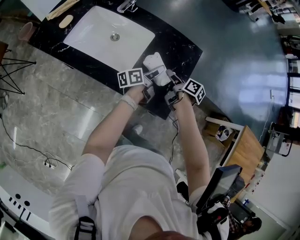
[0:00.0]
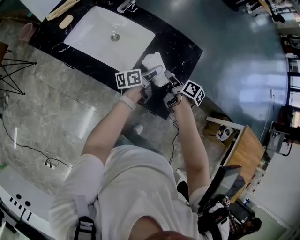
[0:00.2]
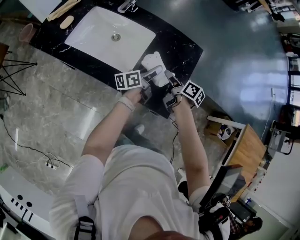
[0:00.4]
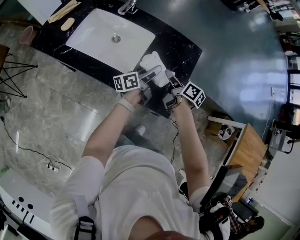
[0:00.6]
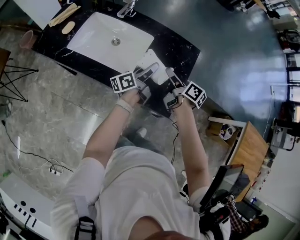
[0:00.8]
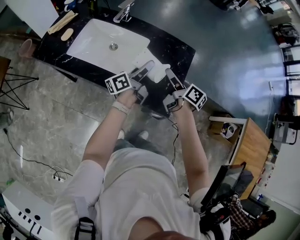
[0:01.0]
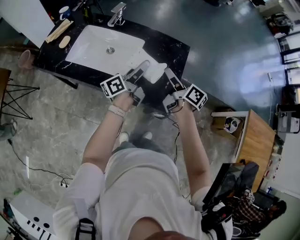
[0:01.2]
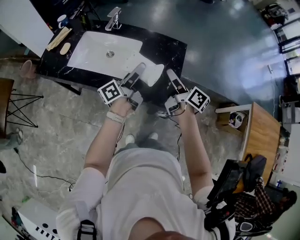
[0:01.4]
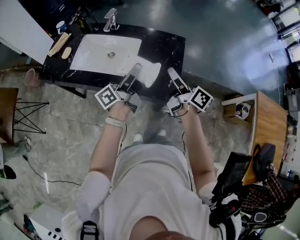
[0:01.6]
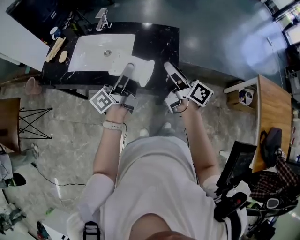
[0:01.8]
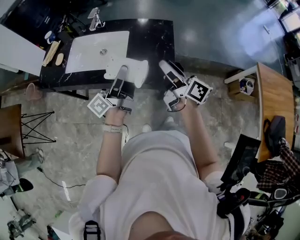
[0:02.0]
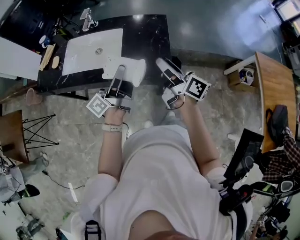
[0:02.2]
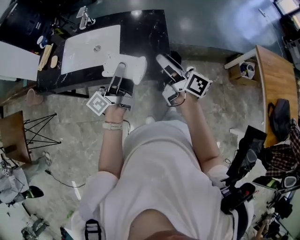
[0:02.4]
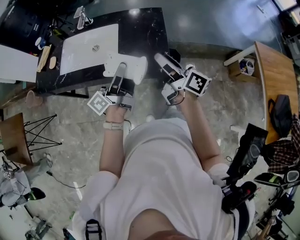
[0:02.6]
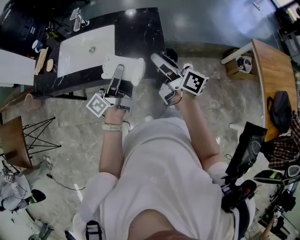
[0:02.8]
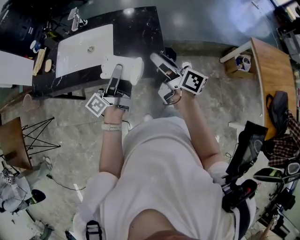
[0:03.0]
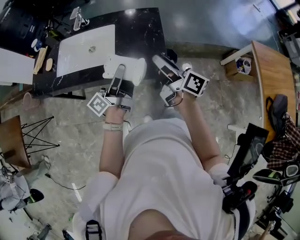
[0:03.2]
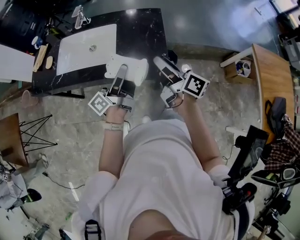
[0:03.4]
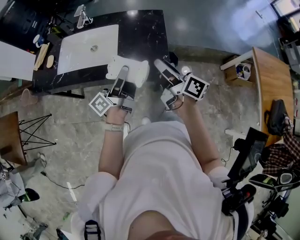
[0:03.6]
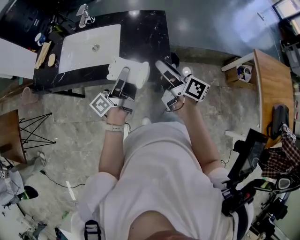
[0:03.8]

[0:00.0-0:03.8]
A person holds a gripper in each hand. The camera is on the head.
0:00.0 to 0:01.2: The right gripper travels upward by roughly 15 cm, and turns by some 30 degrees. The left gripper moves upward and to the left, roughly 15 cm.
0:01.2 to 0:02.6: Both grippers travel together backward, roughly 15 cm.
0:02.6 to 0:03.8: The grippers move only a little.

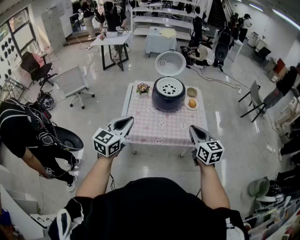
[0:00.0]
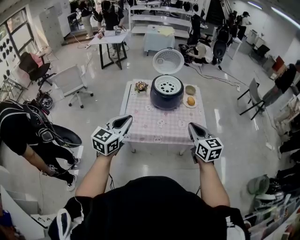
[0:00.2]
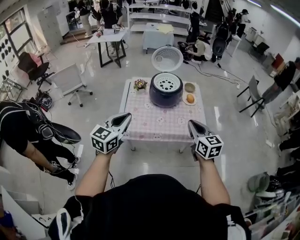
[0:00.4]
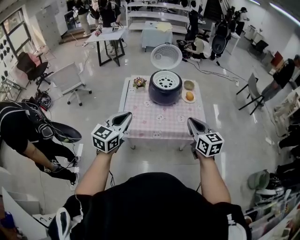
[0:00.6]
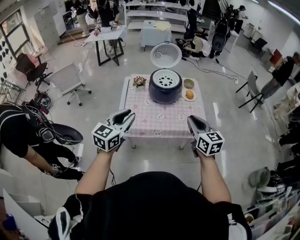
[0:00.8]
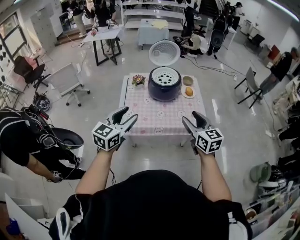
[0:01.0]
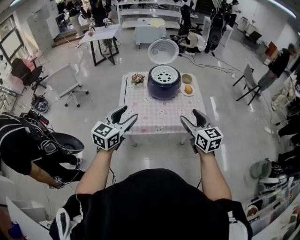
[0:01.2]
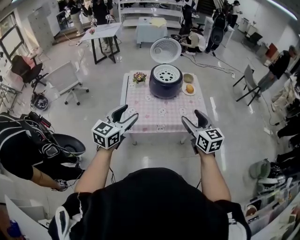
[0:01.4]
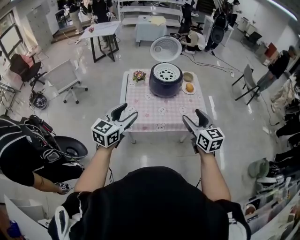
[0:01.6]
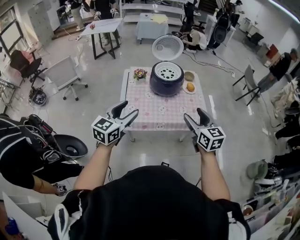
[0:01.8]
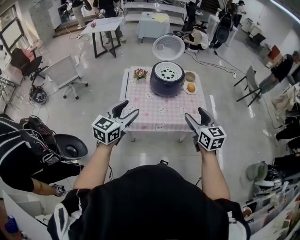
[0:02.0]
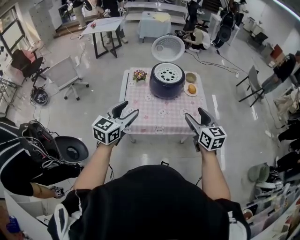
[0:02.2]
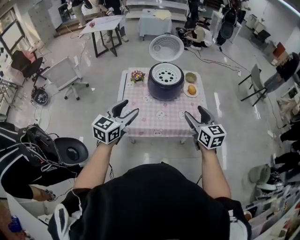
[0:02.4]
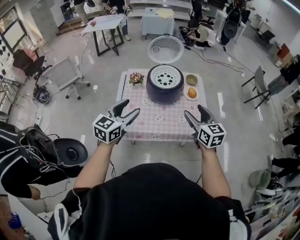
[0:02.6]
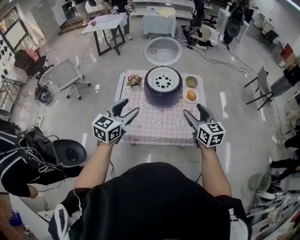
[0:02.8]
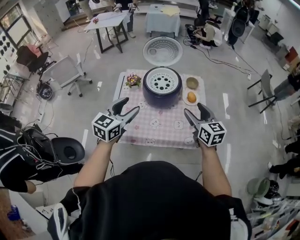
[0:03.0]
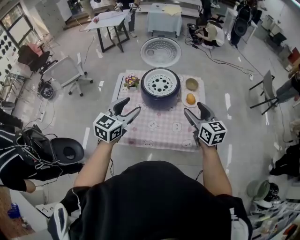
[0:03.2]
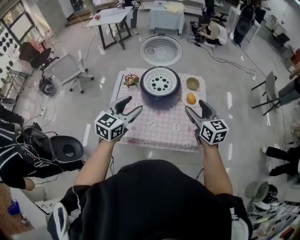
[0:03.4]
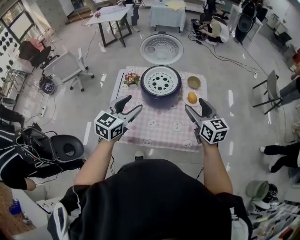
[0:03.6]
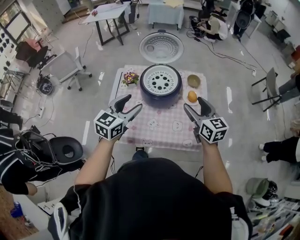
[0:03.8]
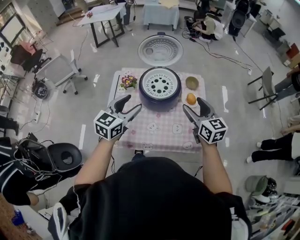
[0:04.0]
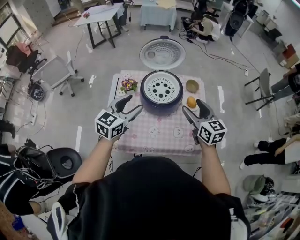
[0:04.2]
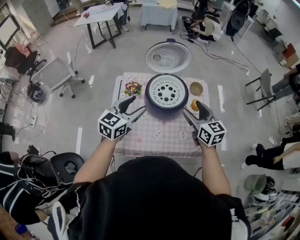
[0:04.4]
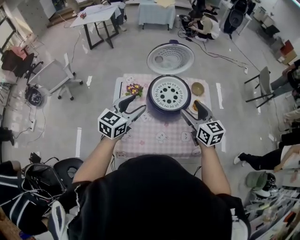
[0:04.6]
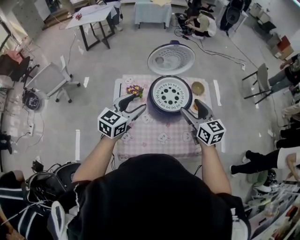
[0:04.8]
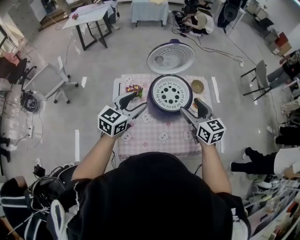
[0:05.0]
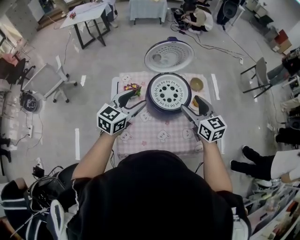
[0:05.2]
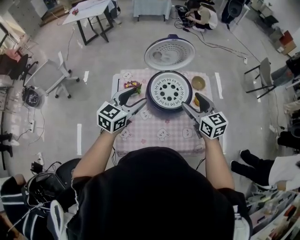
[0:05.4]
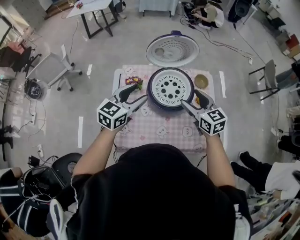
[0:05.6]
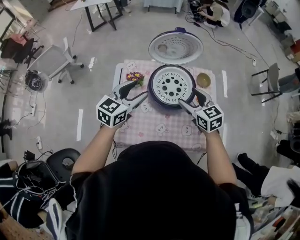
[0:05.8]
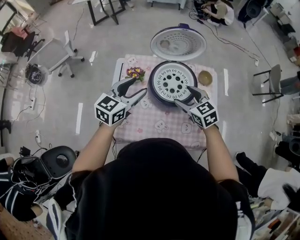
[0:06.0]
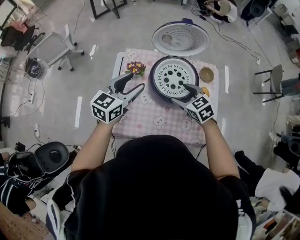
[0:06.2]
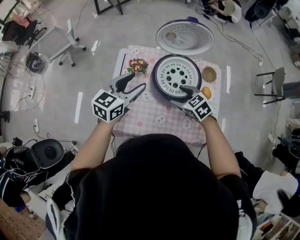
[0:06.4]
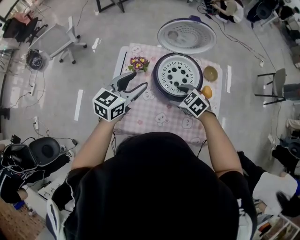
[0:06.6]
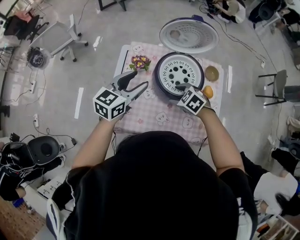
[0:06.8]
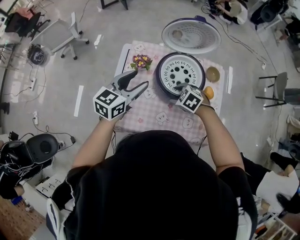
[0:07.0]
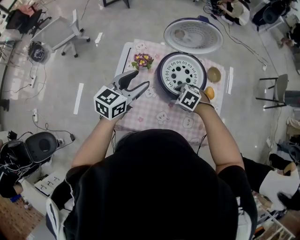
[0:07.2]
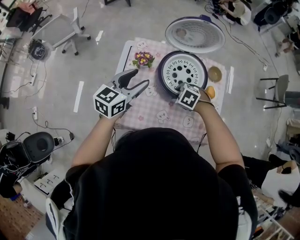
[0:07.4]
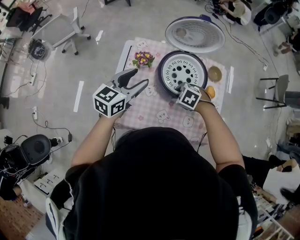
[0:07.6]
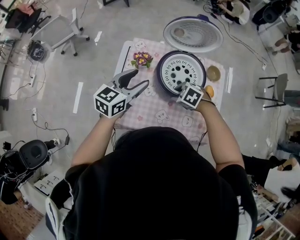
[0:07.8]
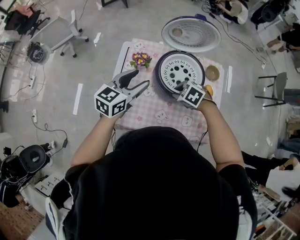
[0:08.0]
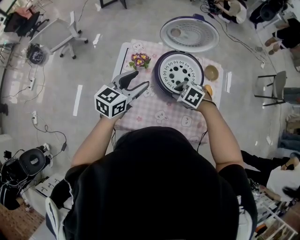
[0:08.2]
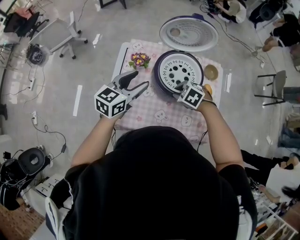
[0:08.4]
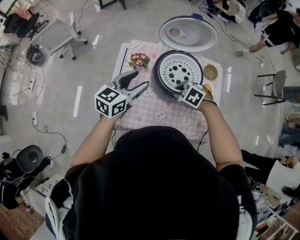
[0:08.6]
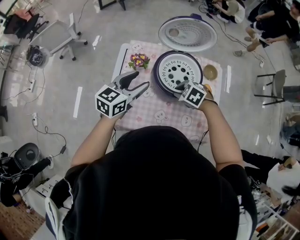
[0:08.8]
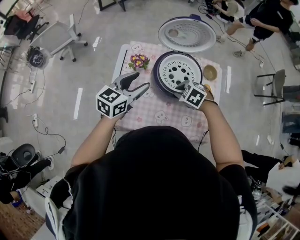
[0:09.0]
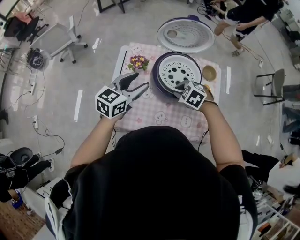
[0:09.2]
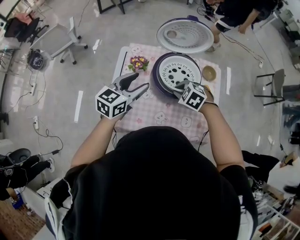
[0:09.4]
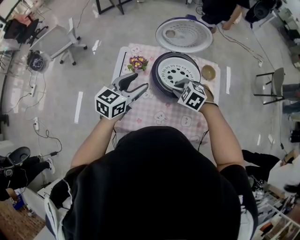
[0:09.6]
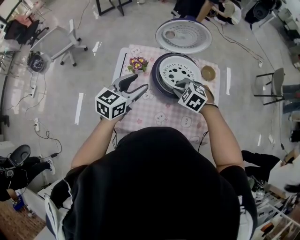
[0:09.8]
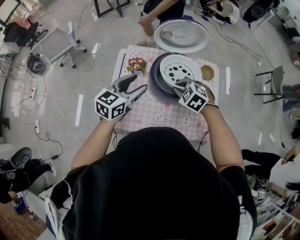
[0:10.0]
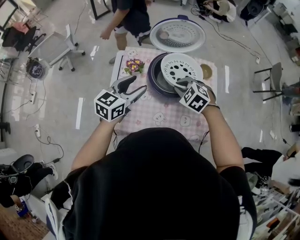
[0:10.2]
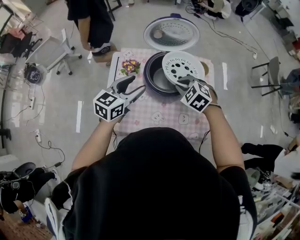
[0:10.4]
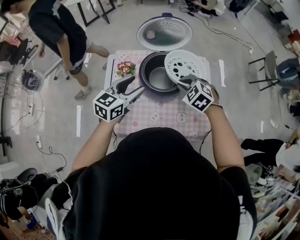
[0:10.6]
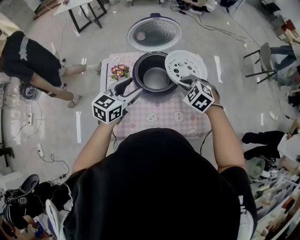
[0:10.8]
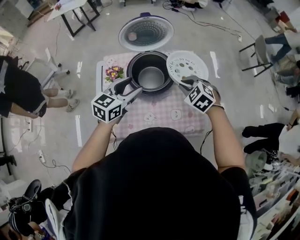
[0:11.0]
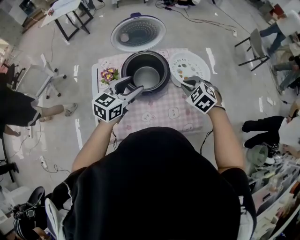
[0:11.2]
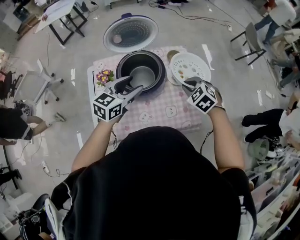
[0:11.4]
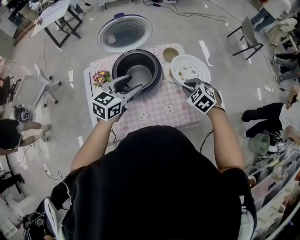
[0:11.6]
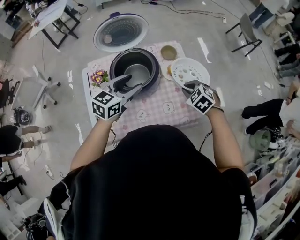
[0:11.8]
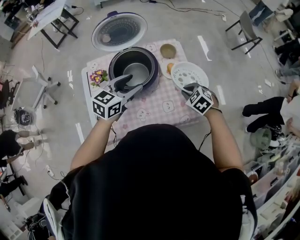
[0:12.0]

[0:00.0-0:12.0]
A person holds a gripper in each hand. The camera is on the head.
0:00.0 to 0:01.6: The left gripper opens up; the right gripper opens its fingers.
0:01.6 to 0:03.0: The grippers both shift forward and to the right by approximately 25 cm.
0:03.0 to 0:04.4: The left gripper goes about 15 cm forward, while the right gripper moves forward and to the left, about 15 cm.
0:04.4 to 0:06.0: The left gripper heads forward, covering approximately 5 cm; the right gripper heads downward, to the left and forward, covering some 15 cm, and turns by about 30 degrees.
0:06.0 to 0:07.6: The right gripper travels downward by roughly 15 cm, points its fingers about 40 degrees further downward, and closes.
0:07.6 to 0:09.0: The grippers make only small movements.
0:09.0 to 0:10.4: The right gripper travels upward by roughly 10 cm, and turns by about 20 degrees.
0:10.4 to 0:12.0: Both grippers move to the right, approximately 20 cm. The right gripper changes its angle by about 30 degrees. The left gripper rotates some 20 degrees.

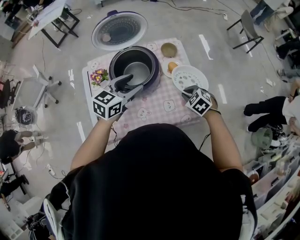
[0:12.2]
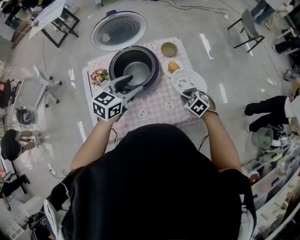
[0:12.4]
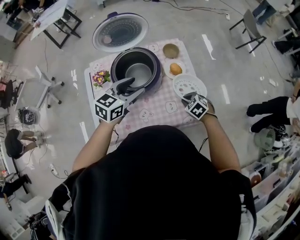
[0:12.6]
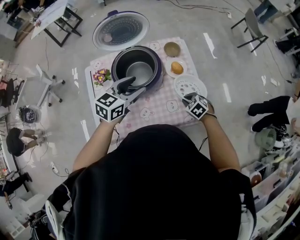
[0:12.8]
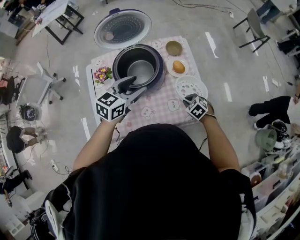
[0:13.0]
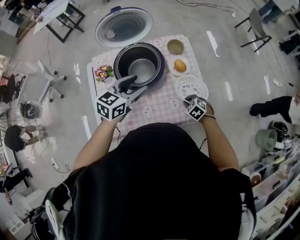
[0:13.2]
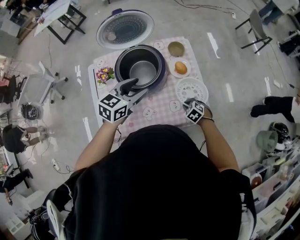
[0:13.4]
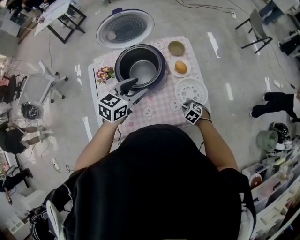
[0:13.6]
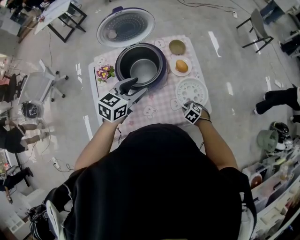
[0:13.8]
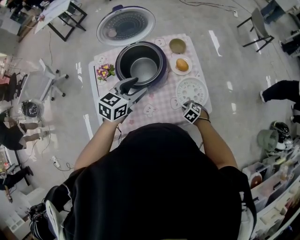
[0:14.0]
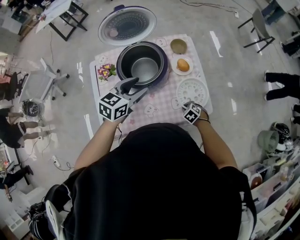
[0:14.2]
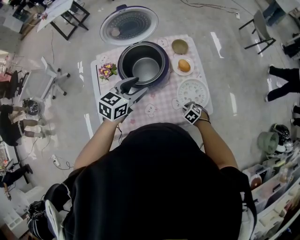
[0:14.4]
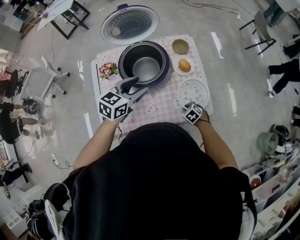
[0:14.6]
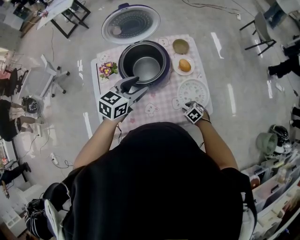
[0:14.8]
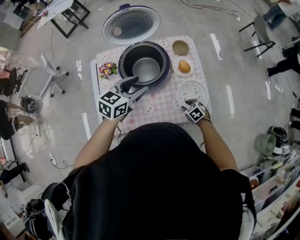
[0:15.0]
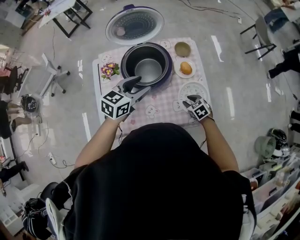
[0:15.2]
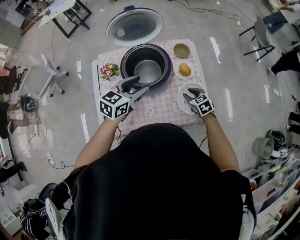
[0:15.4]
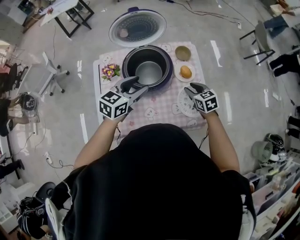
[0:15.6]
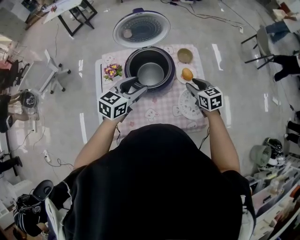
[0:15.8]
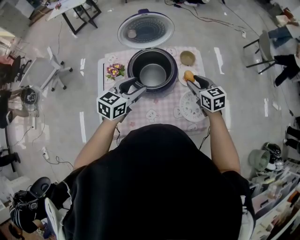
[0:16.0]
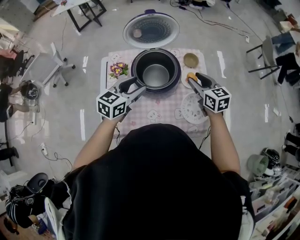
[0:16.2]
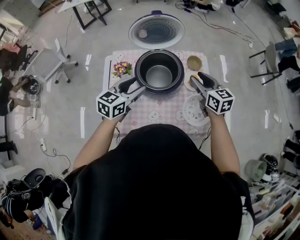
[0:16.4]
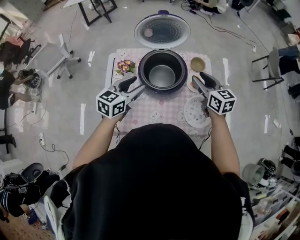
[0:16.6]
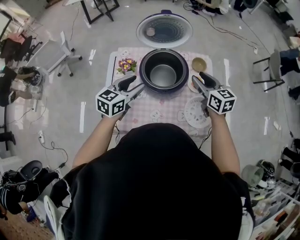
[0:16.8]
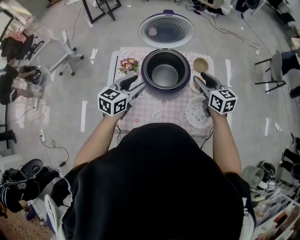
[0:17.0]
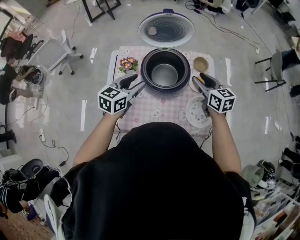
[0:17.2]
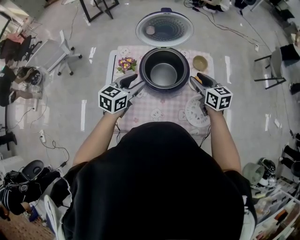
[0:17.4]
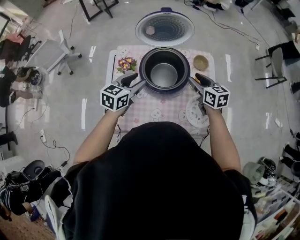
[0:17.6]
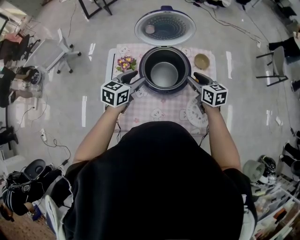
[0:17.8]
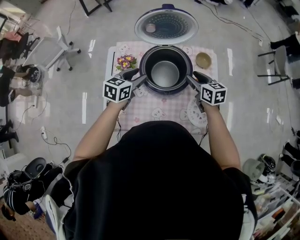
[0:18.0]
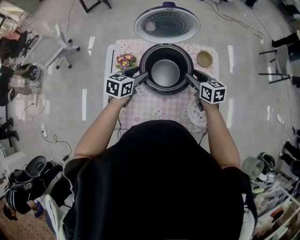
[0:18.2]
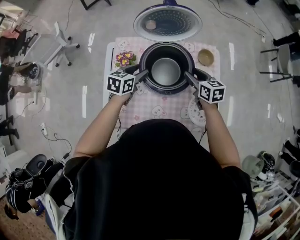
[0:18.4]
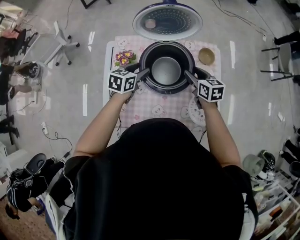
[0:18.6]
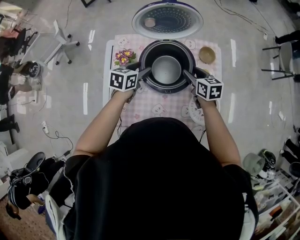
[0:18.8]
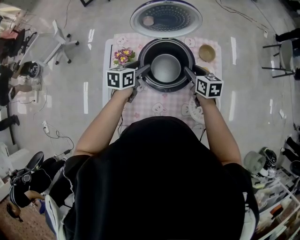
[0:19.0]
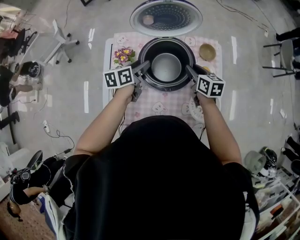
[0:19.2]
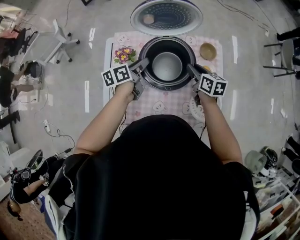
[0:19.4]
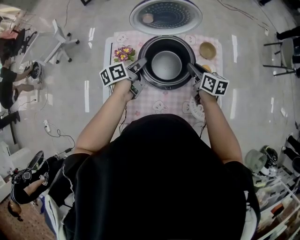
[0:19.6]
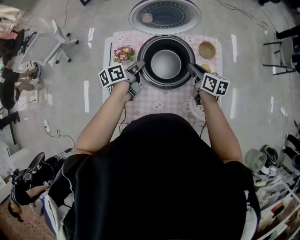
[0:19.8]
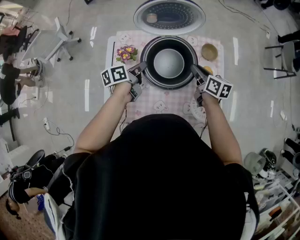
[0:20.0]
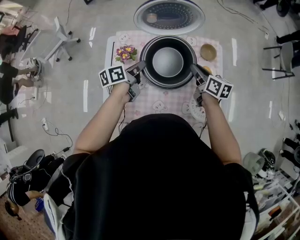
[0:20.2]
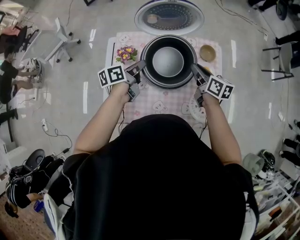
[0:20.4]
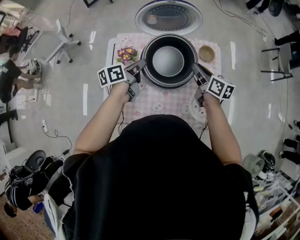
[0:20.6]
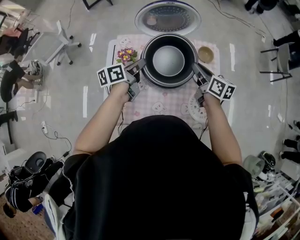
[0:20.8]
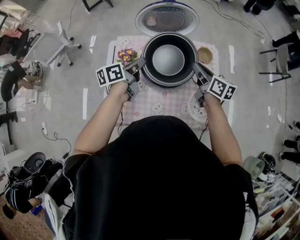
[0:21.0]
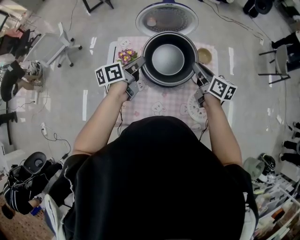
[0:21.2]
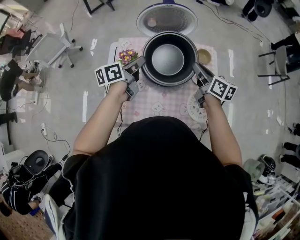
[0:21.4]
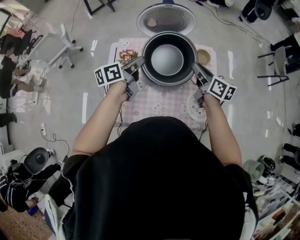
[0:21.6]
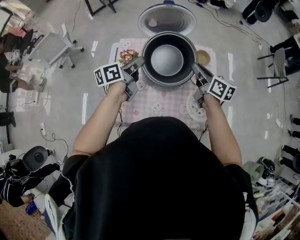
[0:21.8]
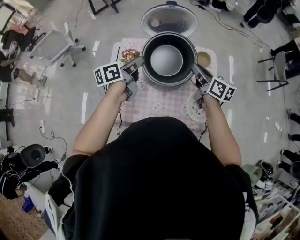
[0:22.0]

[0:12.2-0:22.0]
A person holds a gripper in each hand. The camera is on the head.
0:12.2 to 0:13.6: The right gripper heads downward, covering some 15 cm.
0:13.6 to 0:15.0: The grippers stay close to where they were, moving slightly.
0:15.0 to 0:16.4: The left gripper goes about 10 cm to the left. The right gripper shifts some 35 cm upward and forward, and points its fingers roughly 40 degrees further upward.
0:16.4 to 0:17.8: Both grippers move downward, some 5 cm.
0:17.8 to 0:19.2: The right gripper shifts approximately 5 cm downward. The left gripper moves downward and forward, some 10 cm, and turns by roughly 30 degrees.
0:19.2 to 0:20.6: The left gripper closes up; the right gripper shifts approximately 5 cm upward.
0:20.6 to 0:22.0: Both grippers move upward, roughly 10 cm.
